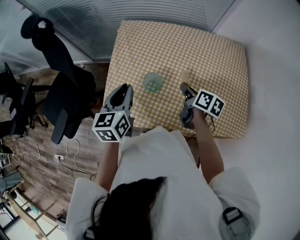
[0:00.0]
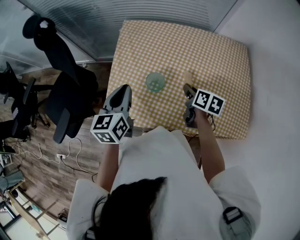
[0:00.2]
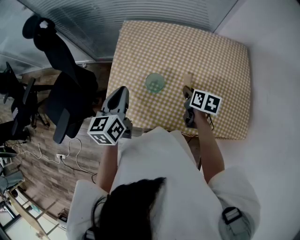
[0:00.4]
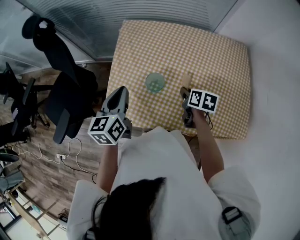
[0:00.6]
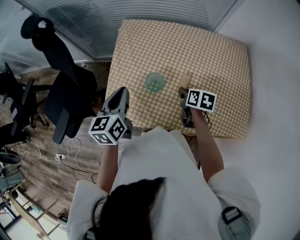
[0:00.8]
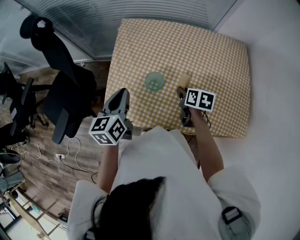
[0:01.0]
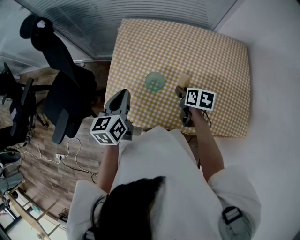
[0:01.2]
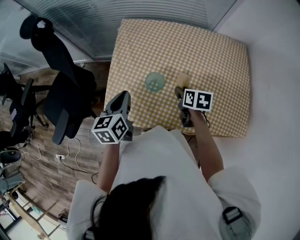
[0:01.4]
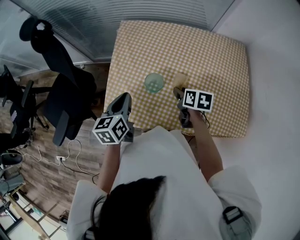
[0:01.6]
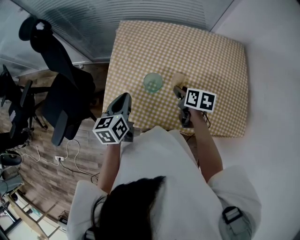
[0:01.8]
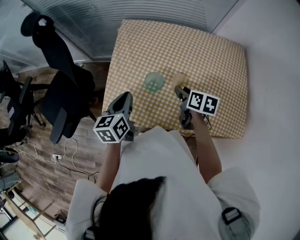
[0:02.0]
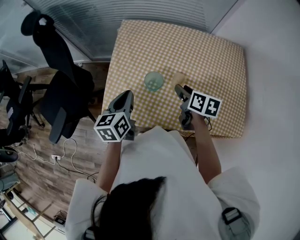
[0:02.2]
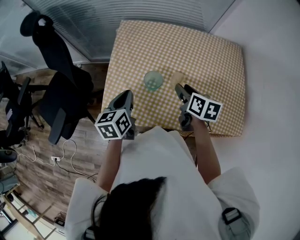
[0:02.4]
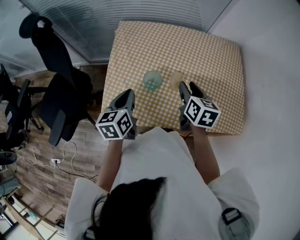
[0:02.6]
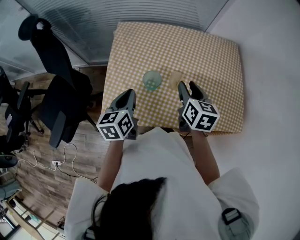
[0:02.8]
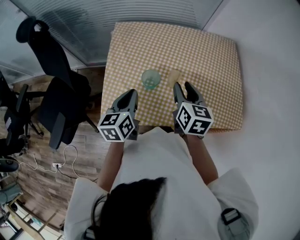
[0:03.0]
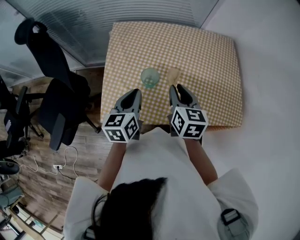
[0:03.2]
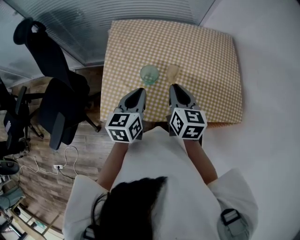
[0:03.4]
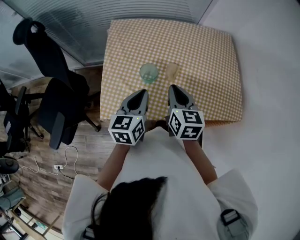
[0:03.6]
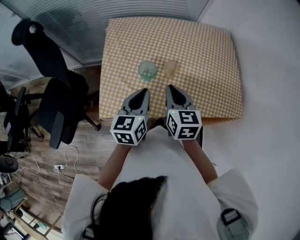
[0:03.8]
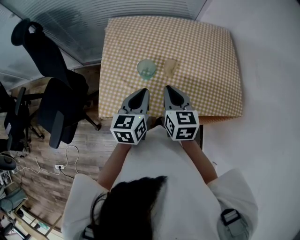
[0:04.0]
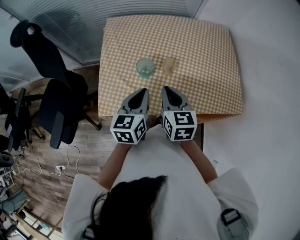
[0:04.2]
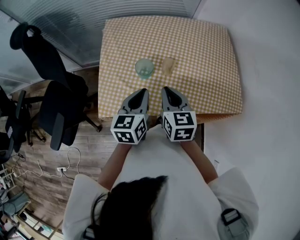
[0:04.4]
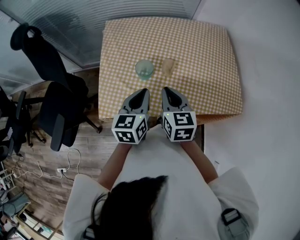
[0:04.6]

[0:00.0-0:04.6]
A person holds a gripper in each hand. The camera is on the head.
0:00.0 to 0:01.6: The right gripper changes its angle by approximately 20 degrees.
0:01.6 to 0:03.0: The right gripper travels upward by some 15 cm, and changes its angle by some 30 degrees.
0:03.0 to 0:04.6: The left gripper goes roughly 5 cm to the right, while the right gripper moves backward, about 10 cm, and closes its fingers.

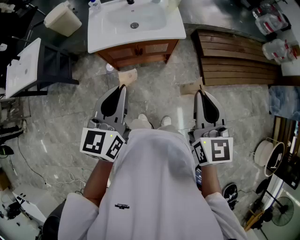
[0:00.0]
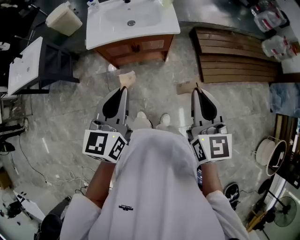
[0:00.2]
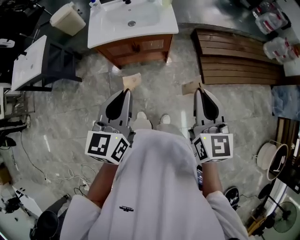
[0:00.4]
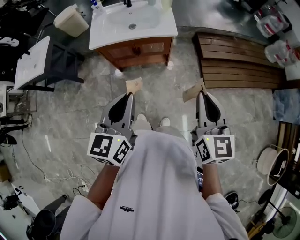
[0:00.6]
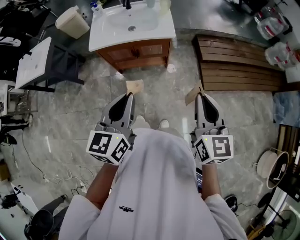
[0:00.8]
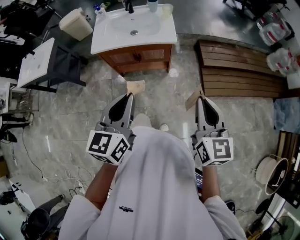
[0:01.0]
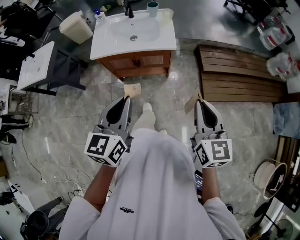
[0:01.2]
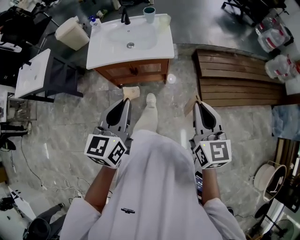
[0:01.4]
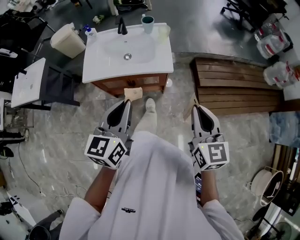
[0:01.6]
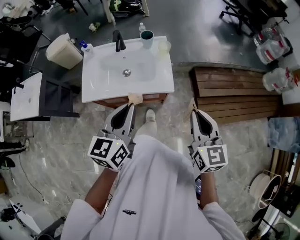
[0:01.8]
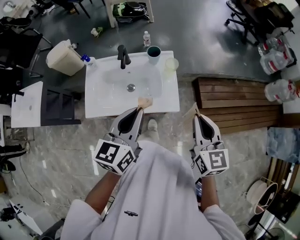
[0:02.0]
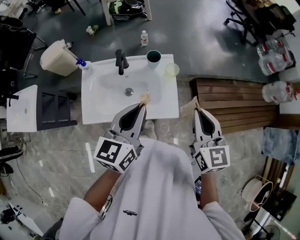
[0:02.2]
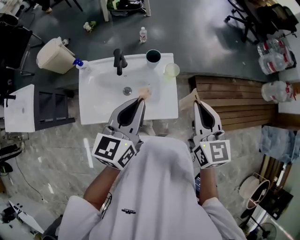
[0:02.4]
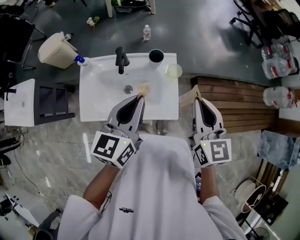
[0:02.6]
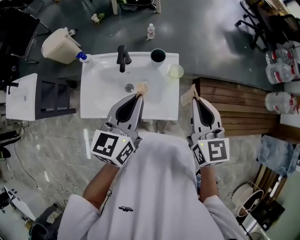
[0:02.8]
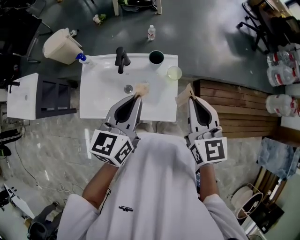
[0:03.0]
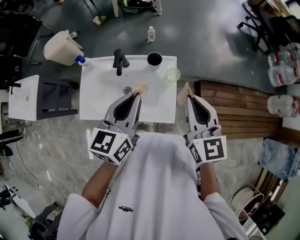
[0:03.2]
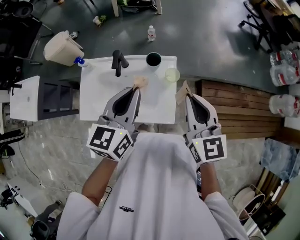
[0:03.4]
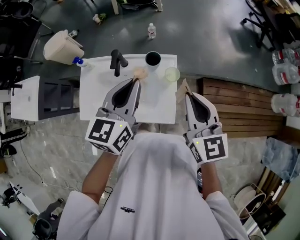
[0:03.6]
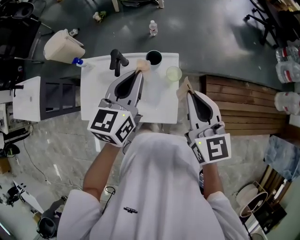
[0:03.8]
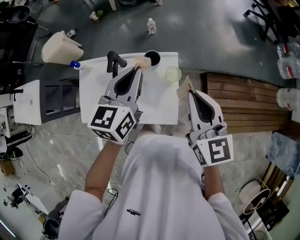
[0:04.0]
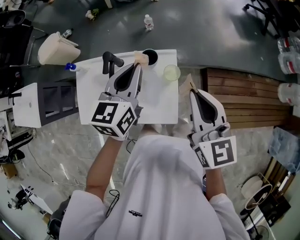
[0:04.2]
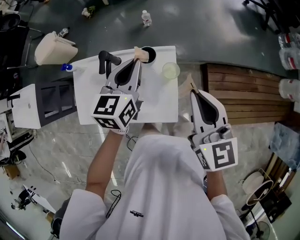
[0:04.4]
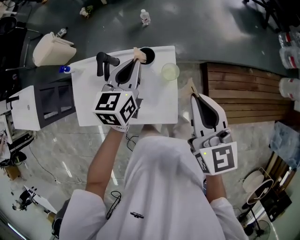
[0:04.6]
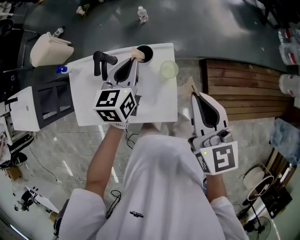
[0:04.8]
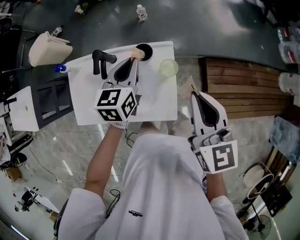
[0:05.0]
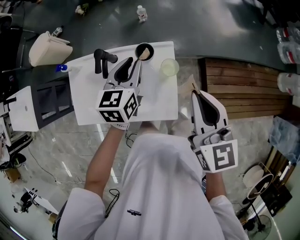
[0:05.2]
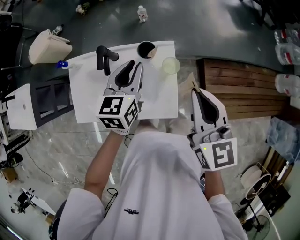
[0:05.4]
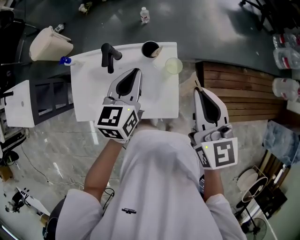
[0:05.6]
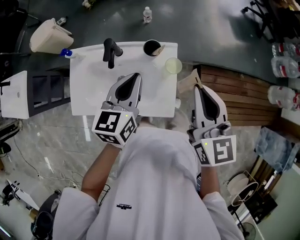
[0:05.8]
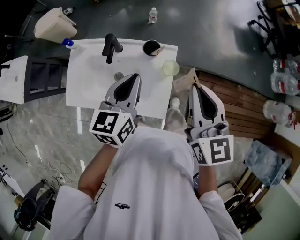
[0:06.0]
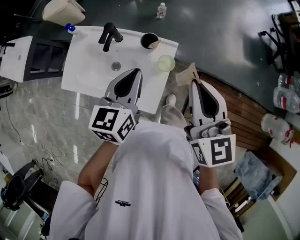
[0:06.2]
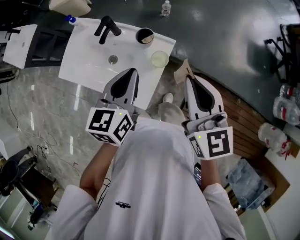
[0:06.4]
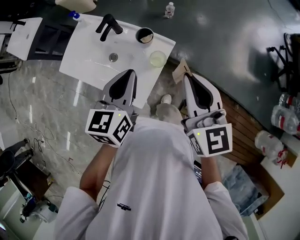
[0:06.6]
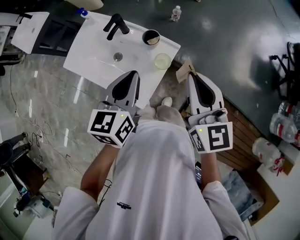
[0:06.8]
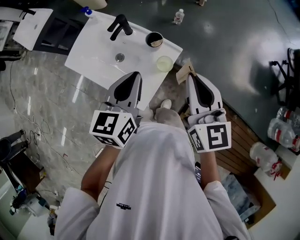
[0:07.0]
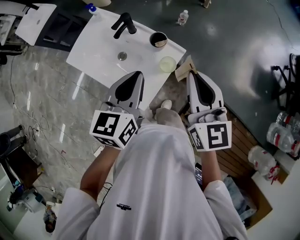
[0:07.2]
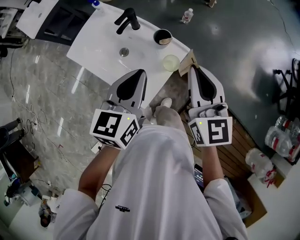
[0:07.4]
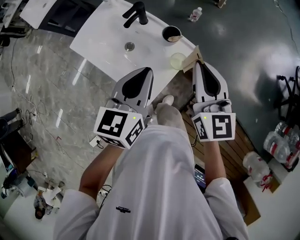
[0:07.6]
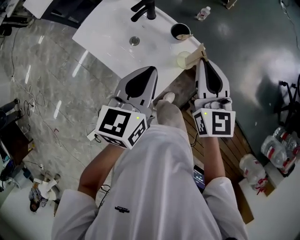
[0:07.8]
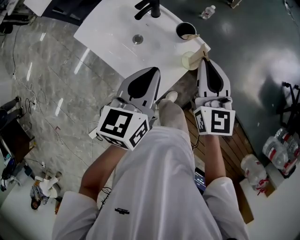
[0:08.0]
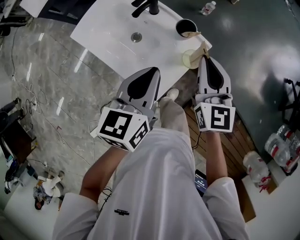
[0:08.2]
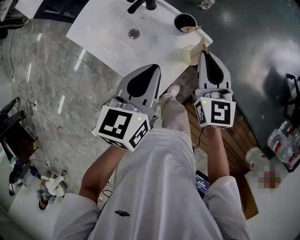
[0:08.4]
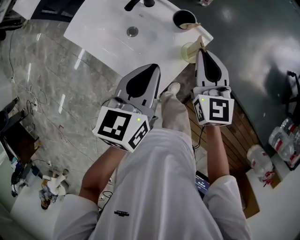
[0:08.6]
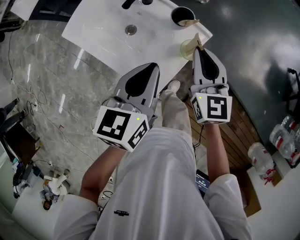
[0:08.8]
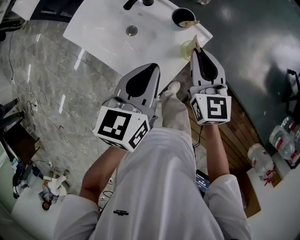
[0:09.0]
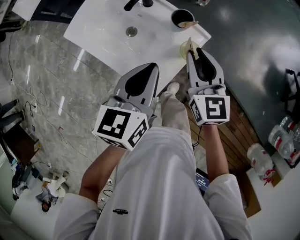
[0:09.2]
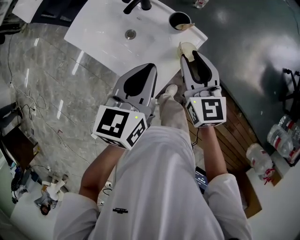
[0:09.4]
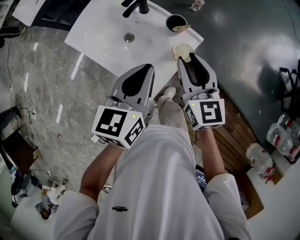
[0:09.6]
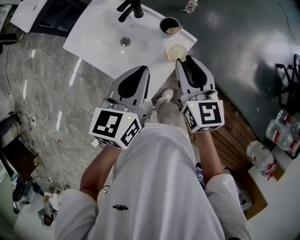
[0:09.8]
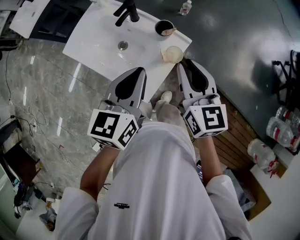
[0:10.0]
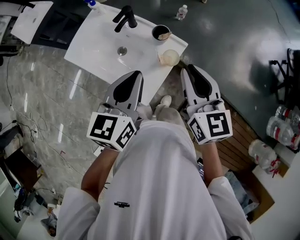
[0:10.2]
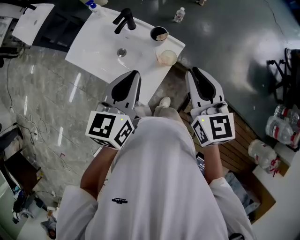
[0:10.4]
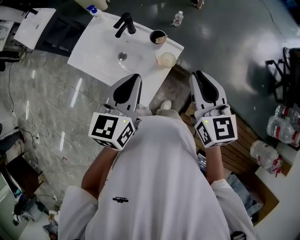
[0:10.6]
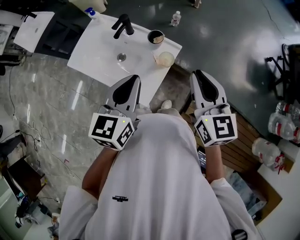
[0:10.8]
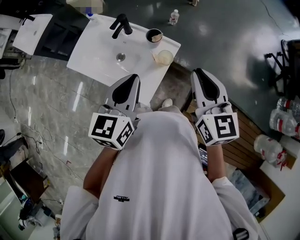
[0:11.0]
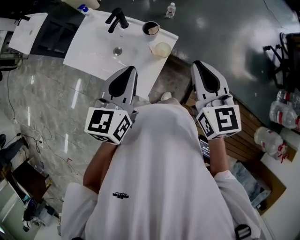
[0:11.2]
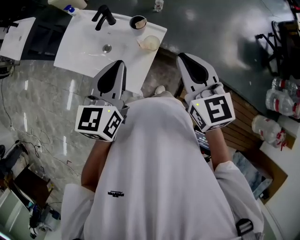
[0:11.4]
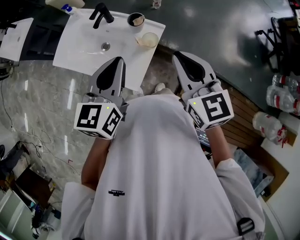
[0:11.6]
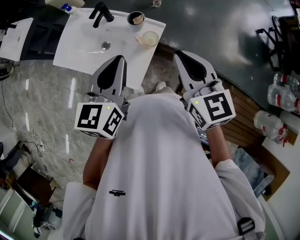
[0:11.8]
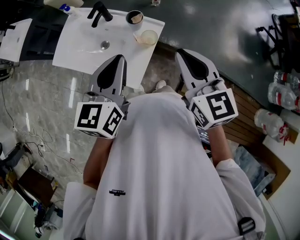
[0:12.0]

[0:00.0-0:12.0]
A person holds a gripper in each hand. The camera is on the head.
0:00.0 to 0:01.6: The grippers both shift to the right and forward by about 15 cm.
0:01.6 to 0:03.0: The grippers both shift forward by about 35 cm.
0:03.0 to 0:04.4: The left gripper goes roughly 20 cm forward and downward. Meanwhile the right gripper goes some 10 cm forward.
0:04.4 to 0:06.0: The left gripper goes about 10 cm backward.
0:06.0 to 0:07.6: The left gripper shifts by approximately 5 cm, and rotates roughly 30 degrees. Meanwhile the right gripper shifts by roughly 10 cm, and turns by some 30 degrees.
0:07.6 to 0:09.0: The right gripper moves downward, roughly 15 cm, while the left gripper moves downward, about 5 cm.
0:09.0 to 0:10.4: The right gripper moves upward and backward, approximately 15 cm. Meanwhile the left gripper is displaced upward by about 10 cm.
0:10.4 to 0:12.0: The grippers stay close to where they were, moving slightly.

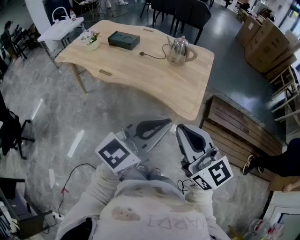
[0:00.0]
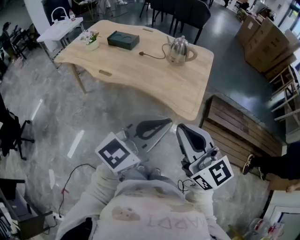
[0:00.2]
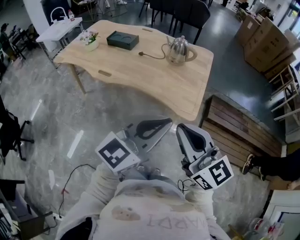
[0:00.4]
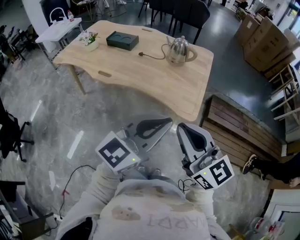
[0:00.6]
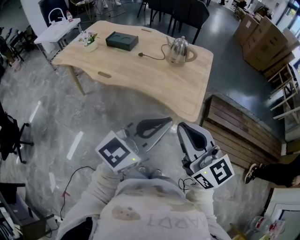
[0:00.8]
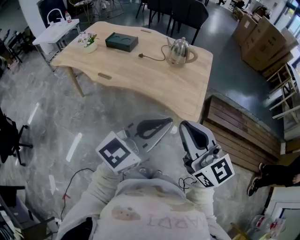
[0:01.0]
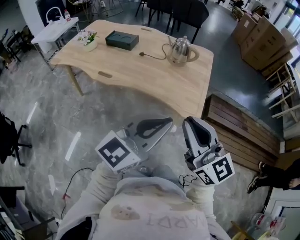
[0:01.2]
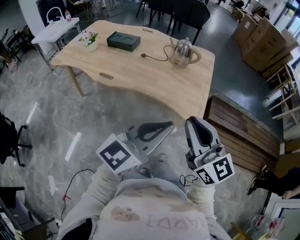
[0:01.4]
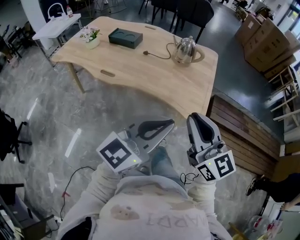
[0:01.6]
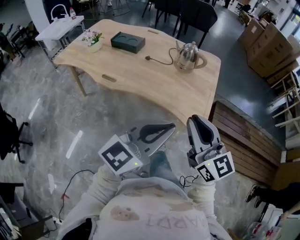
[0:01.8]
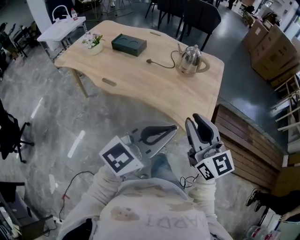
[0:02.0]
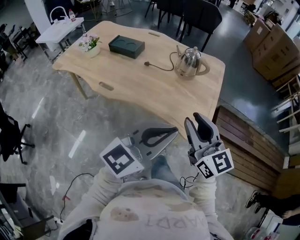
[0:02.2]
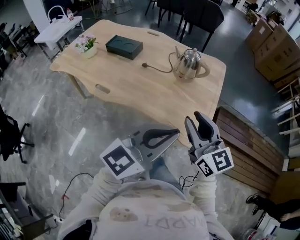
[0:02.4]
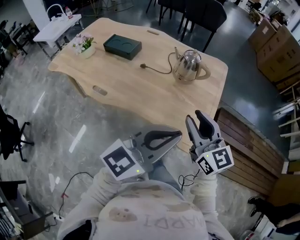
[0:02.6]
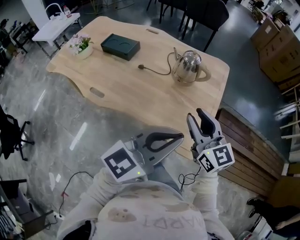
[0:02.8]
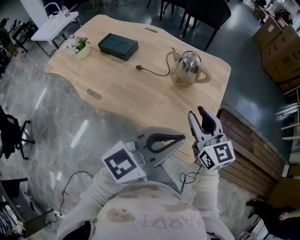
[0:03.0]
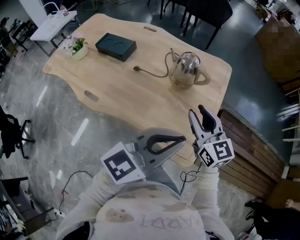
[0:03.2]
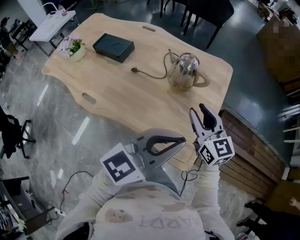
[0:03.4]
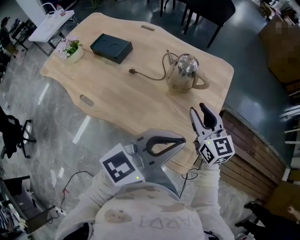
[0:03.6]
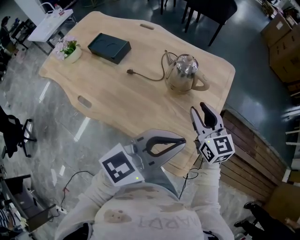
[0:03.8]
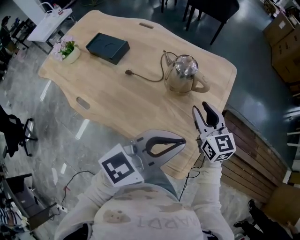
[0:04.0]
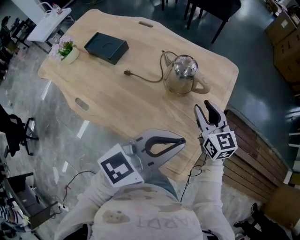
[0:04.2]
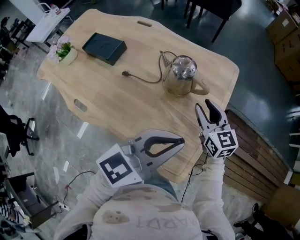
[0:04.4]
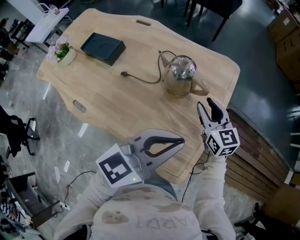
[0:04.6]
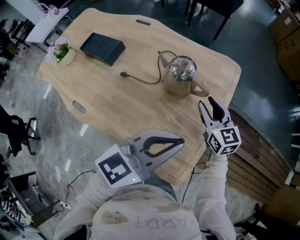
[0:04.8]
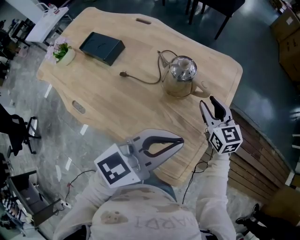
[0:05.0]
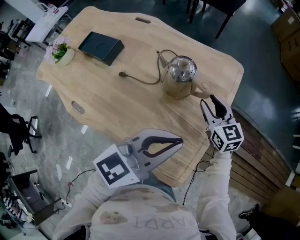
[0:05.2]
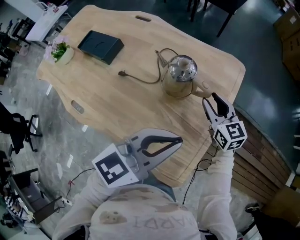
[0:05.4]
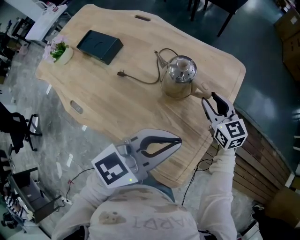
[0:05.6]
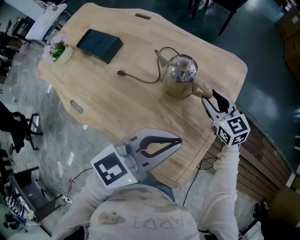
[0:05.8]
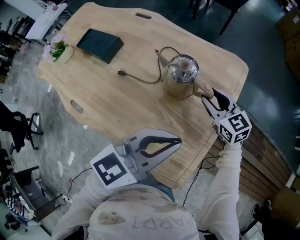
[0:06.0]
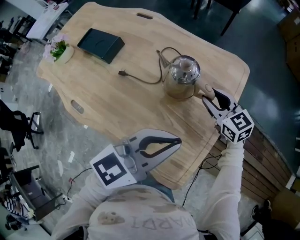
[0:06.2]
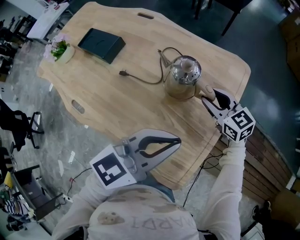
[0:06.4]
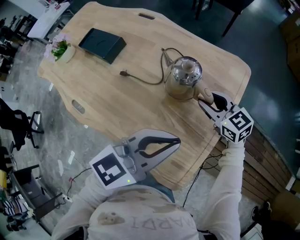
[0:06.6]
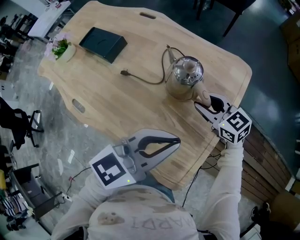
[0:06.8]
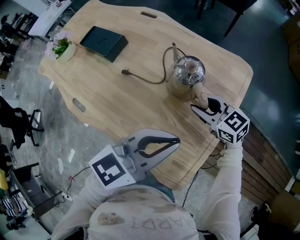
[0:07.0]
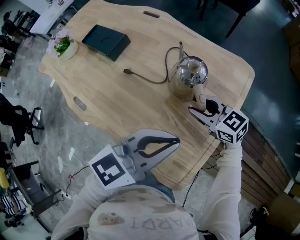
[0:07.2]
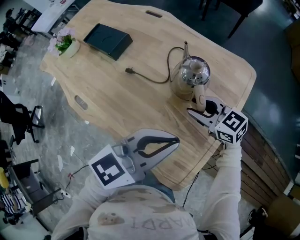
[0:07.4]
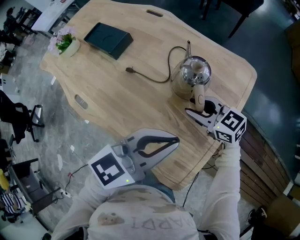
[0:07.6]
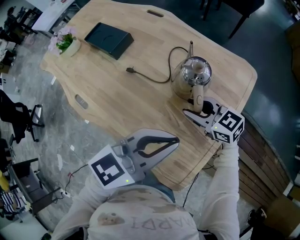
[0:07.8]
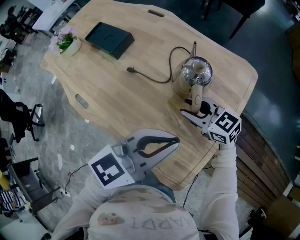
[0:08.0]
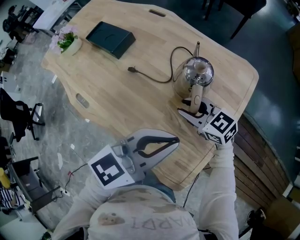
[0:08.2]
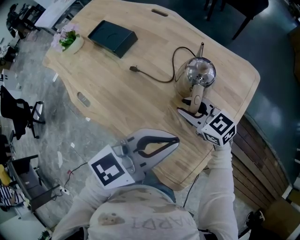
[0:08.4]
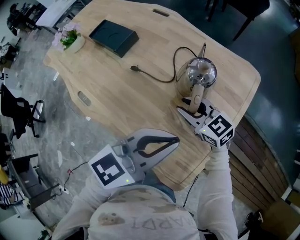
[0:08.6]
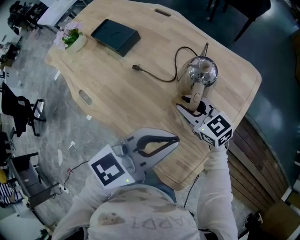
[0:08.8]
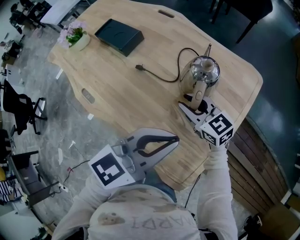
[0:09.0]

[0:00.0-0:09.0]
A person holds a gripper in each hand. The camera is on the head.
0:00.0 to 0:01.6: The right gripper travels forward by approximately 5 cm. The left gripper travels to the left by approximately 5 cm.
0:01.6 to 0:03.0: Both grippers travel together forward, roughly 30 cm. The right gripper opens its fingers.
0:03.0 to 0:04.4: The right gripper heads forward and downward, covering roughly 25 cm. Meanwhile the left gripper shifts approximately 15 cm forward.
0:04.4 to 0:06.0: The right gripper travels forward and downward by about 10 cm. Meanwhile the left gripper moves forward, approximately 5 cm.
0:06.0 to 0:07.6: The right gripper ends up roughly 10 cm from where it was, and turns by about 30 degrees.
0:07.6 to 0:09.0: The grippers move only a little.
